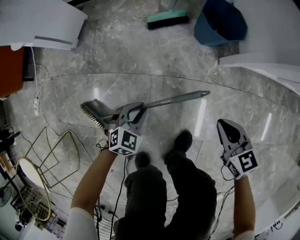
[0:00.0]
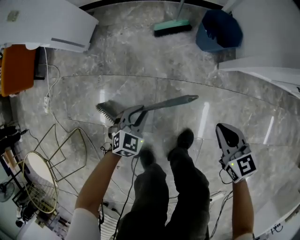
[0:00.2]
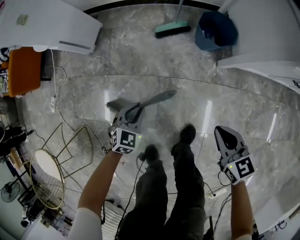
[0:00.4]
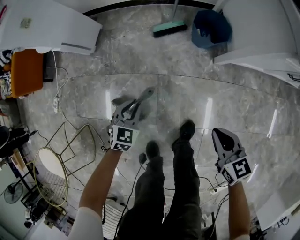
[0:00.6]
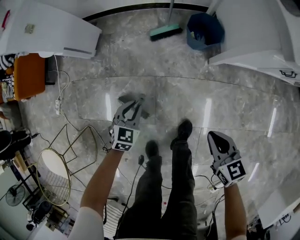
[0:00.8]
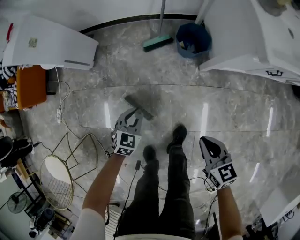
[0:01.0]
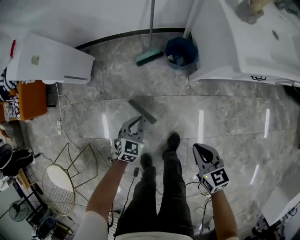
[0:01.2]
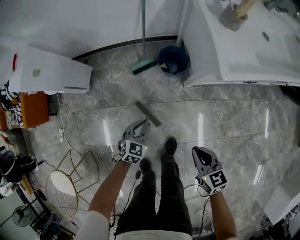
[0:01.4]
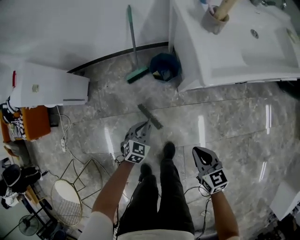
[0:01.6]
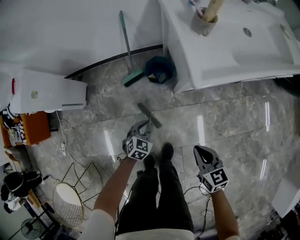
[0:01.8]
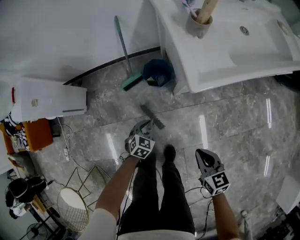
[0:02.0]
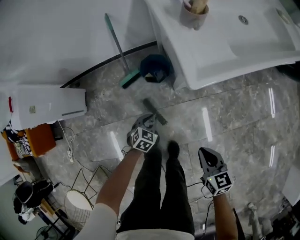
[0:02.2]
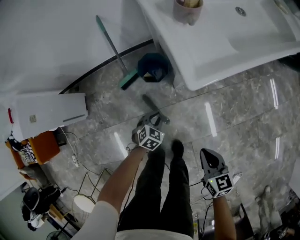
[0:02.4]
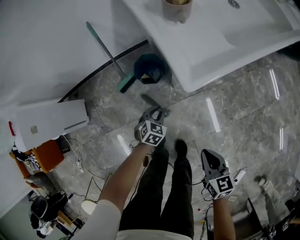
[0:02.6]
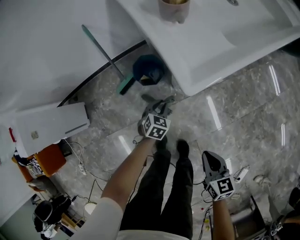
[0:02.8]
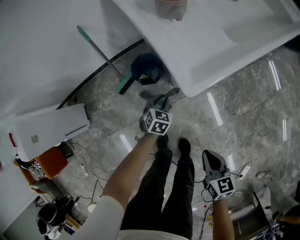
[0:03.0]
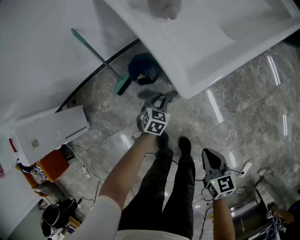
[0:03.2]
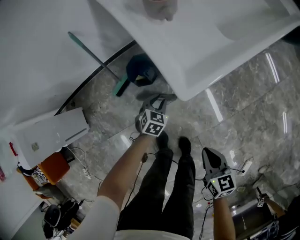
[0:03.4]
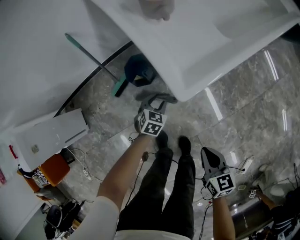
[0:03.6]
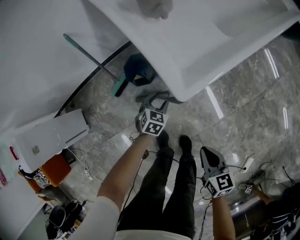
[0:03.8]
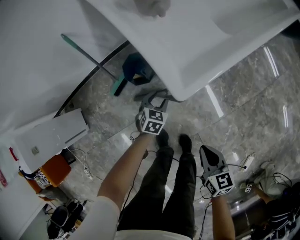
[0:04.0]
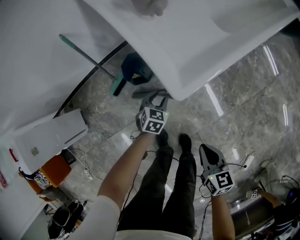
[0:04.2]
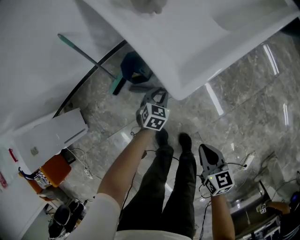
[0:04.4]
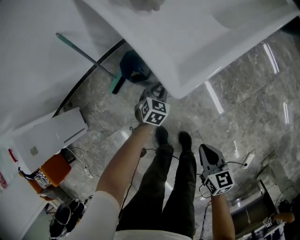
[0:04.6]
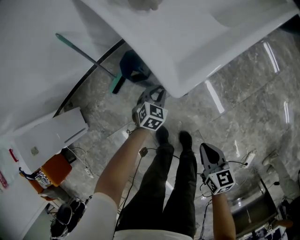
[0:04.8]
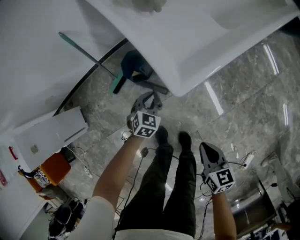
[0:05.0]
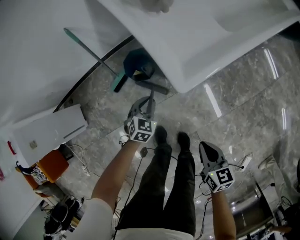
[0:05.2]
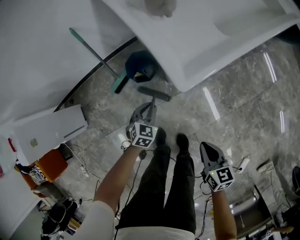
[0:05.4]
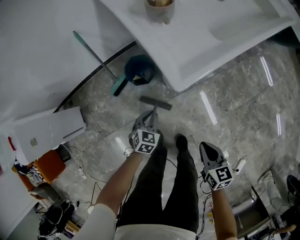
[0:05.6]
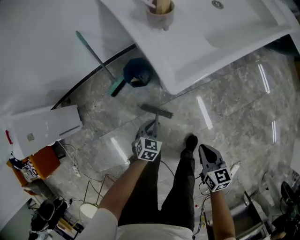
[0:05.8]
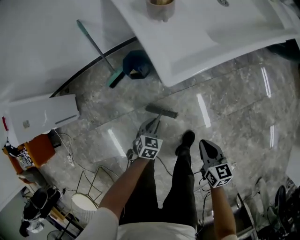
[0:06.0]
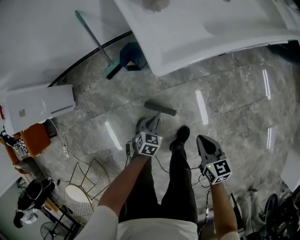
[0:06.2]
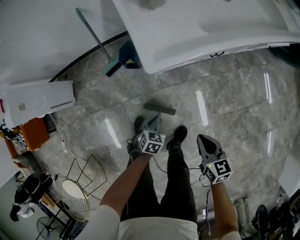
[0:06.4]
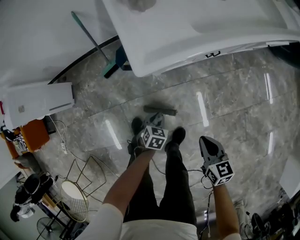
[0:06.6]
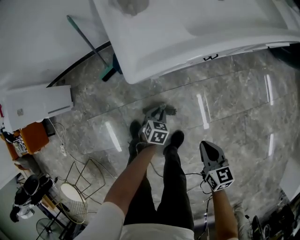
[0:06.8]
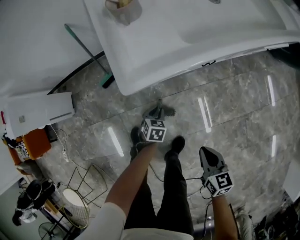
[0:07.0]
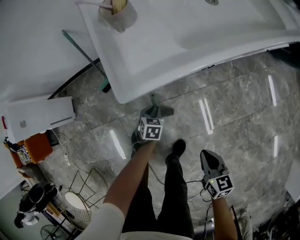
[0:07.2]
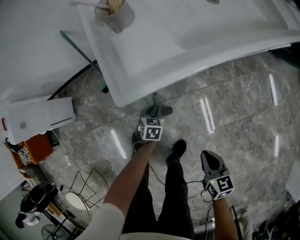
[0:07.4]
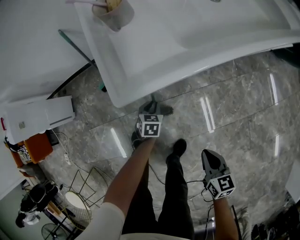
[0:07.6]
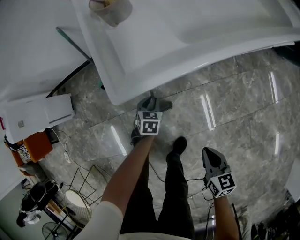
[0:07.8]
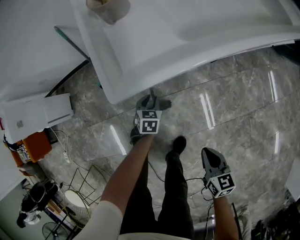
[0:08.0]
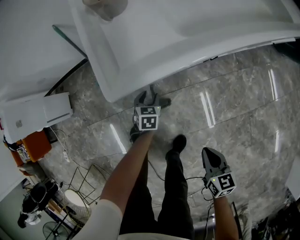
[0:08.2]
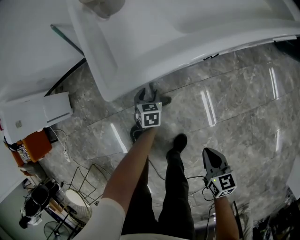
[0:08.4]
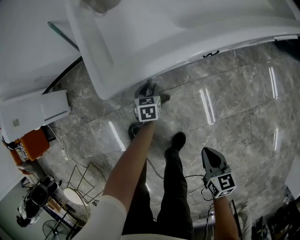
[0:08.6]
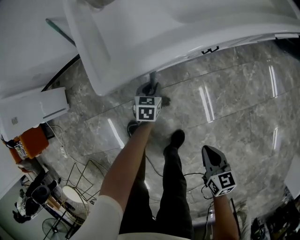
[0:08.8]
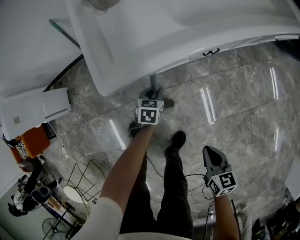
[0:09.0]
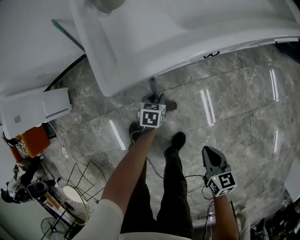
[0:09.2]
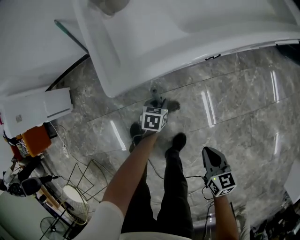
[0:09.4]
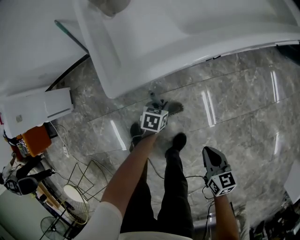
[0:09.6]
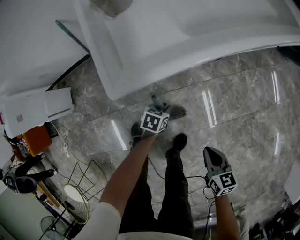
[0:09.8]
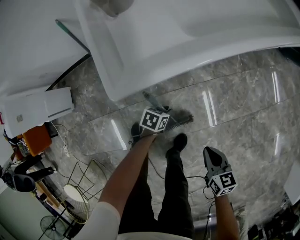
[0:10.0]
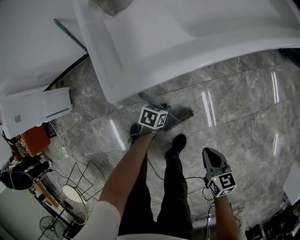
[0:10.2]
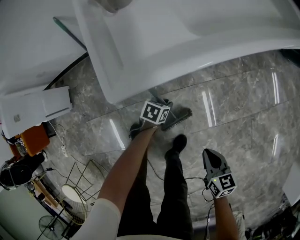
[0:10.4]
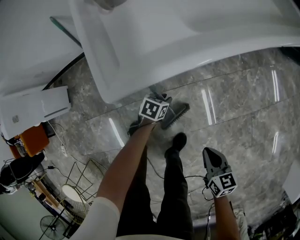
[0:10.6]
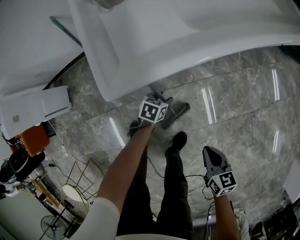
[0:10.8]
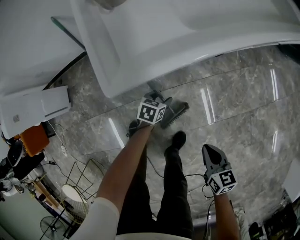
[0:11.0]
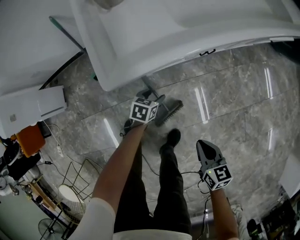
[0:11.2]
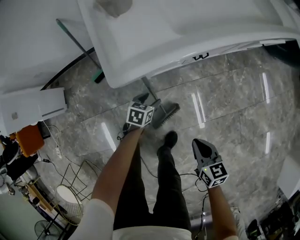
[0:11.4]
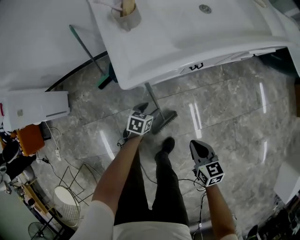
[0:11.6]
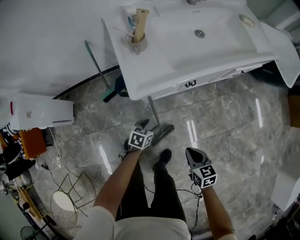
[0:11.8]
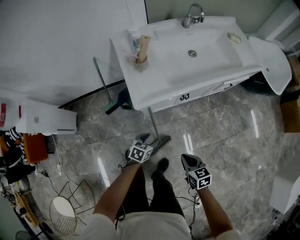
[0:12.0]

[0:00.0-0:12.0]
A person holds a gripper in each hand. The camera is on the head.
0:00.0 to 0:01.6: The right gripper heads upward, covering about 35 cm, while the left gripper goes some 35 cm upward and to the right.
0:01.6 to 0:03.0: The left gripper shifts about 25 cm forward, to the right and downward; the right gripper changes place by some 5 cm, and swivels approximately 30 degrees.
0:03.0 to 0:04.4: The left gripper opens and closes again.
0:04.4 to 0:06.0: The left gripper travels backward and upward by some 20 cm. The right gripper goes some 10 cm to the right.
0:06.0 to 0:07.6: The left gripper shifts about 20 cm forward, to the right and downward. Meanwhile the right gripper shifts approximately 15 cm to the right.
0:07.6 to 0:09.0: The right gripper changes place by approximately 5 cm; the left gripper opens and closes again.
0:09.0 to 0:10.4: The left gripper shifts by about 5 cm, and changes its angle by roughly 30 degrees.
0:10.4 to 0:12.0: The grippers both shift upward by some 30 cm. The left gripper opens up.

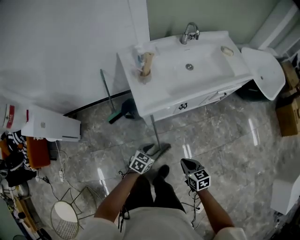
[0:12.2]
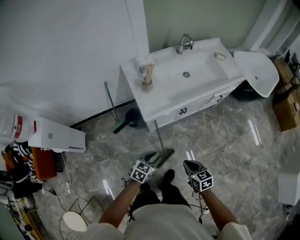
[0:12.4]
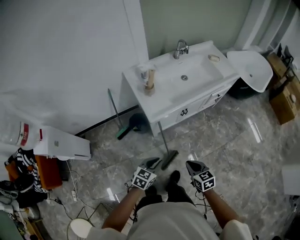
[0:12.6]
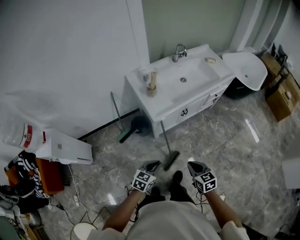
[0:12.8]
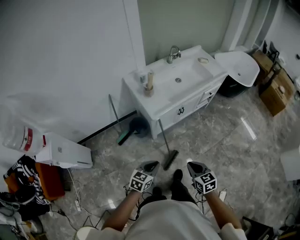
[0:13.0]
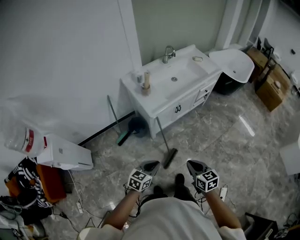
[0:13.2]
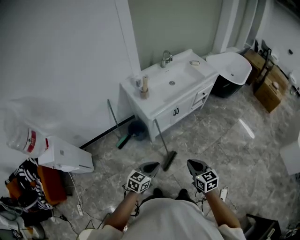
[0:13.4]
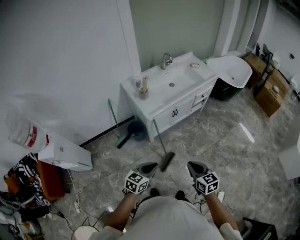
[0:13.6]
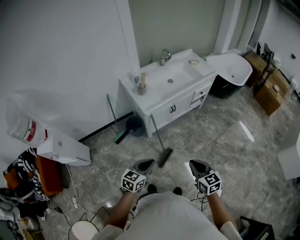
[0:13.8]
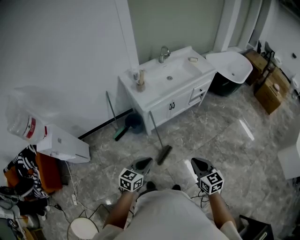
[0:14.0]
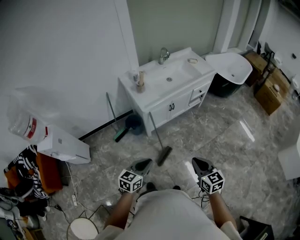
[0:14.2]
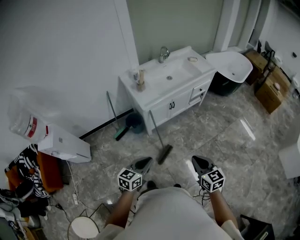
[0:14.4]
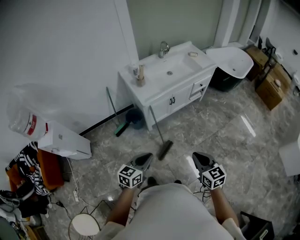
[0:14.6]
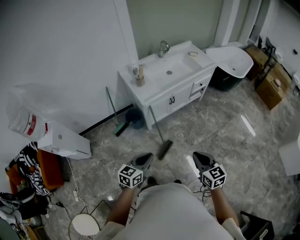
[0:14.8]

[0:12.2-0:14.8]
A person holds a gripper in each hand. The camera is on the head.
0:12.2 to 0:13.4: The left gripper goes some 35 cm backward and upward, swivels roughly 20 degrees, and closes; the right gripper heads upward and backward, covering about 30 cm, and rotates approximately 20 degrees.
0:13.4 to 0:14.8: The right gripper heads to the right, upward and backward, covering approximately 10 cm. The left gripper shifts by roughly 10 cm.

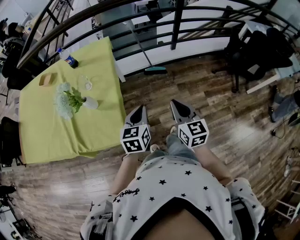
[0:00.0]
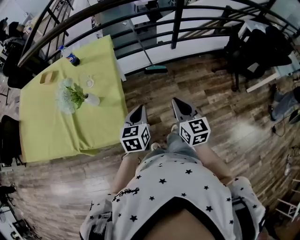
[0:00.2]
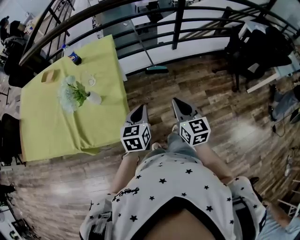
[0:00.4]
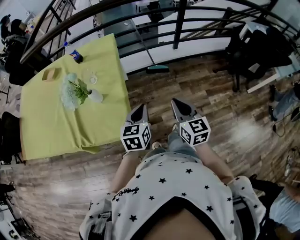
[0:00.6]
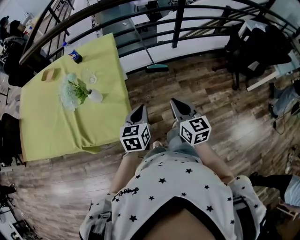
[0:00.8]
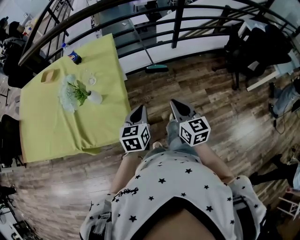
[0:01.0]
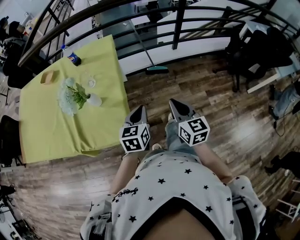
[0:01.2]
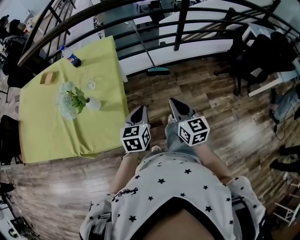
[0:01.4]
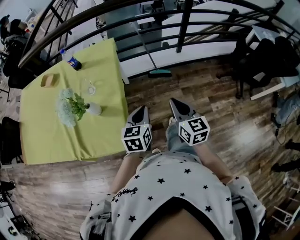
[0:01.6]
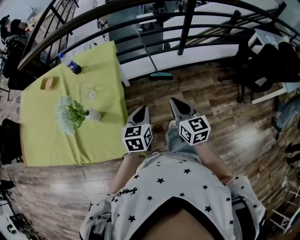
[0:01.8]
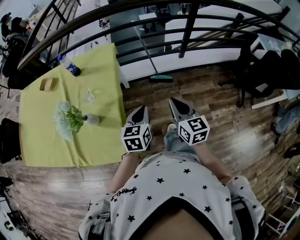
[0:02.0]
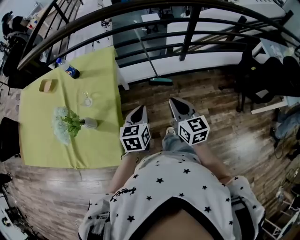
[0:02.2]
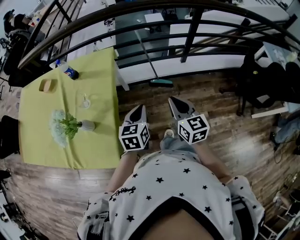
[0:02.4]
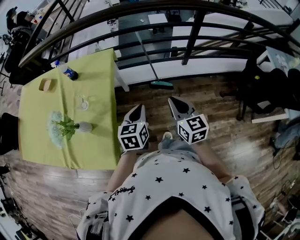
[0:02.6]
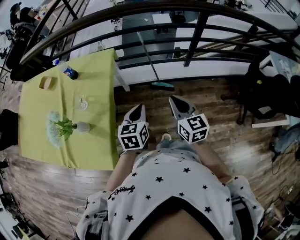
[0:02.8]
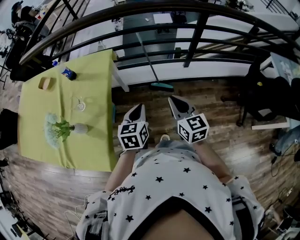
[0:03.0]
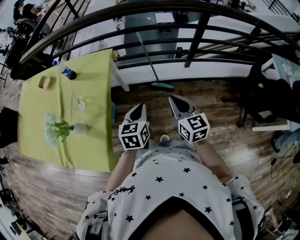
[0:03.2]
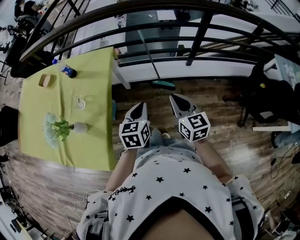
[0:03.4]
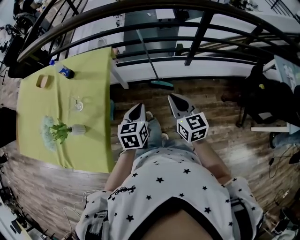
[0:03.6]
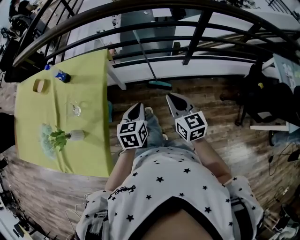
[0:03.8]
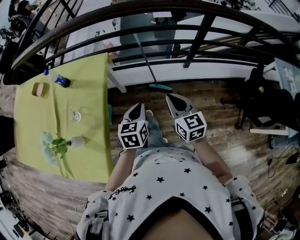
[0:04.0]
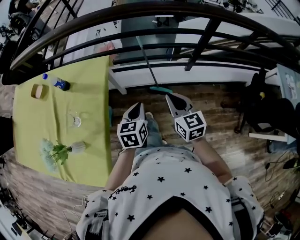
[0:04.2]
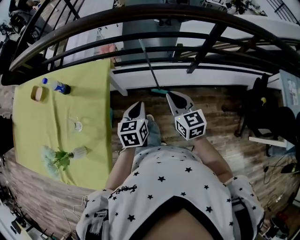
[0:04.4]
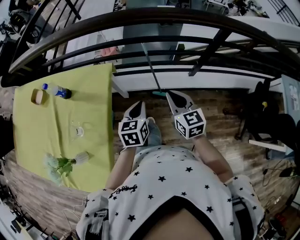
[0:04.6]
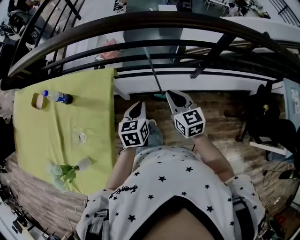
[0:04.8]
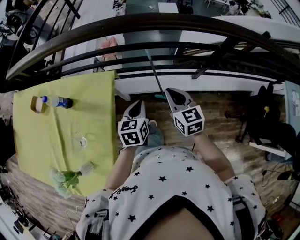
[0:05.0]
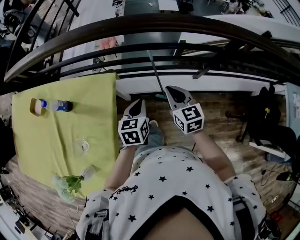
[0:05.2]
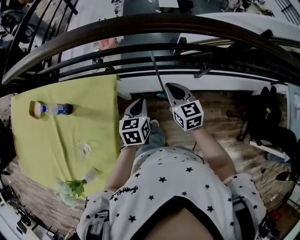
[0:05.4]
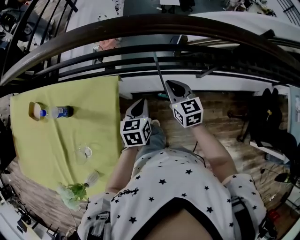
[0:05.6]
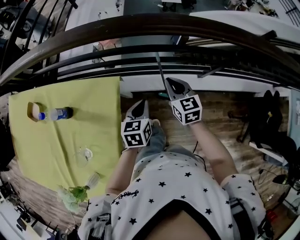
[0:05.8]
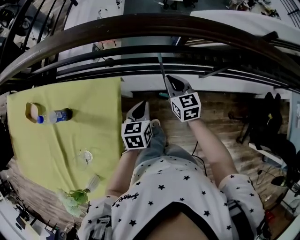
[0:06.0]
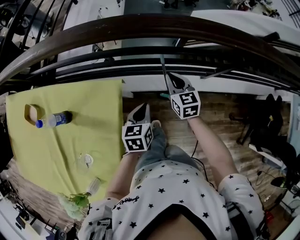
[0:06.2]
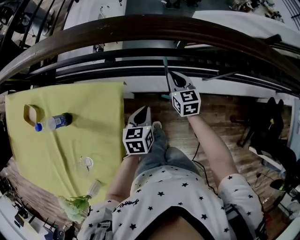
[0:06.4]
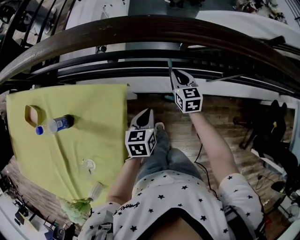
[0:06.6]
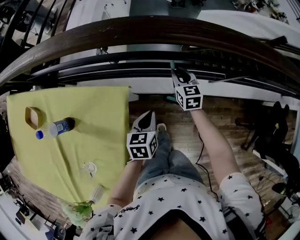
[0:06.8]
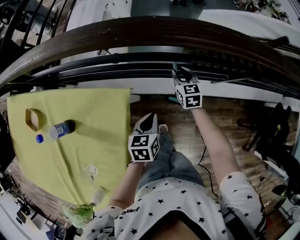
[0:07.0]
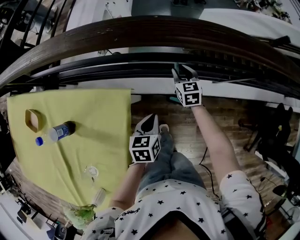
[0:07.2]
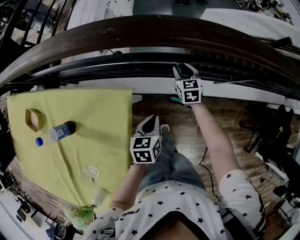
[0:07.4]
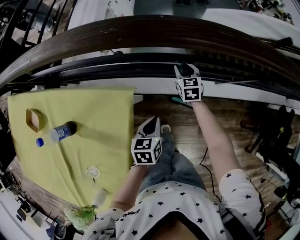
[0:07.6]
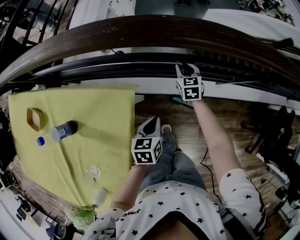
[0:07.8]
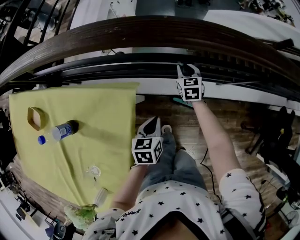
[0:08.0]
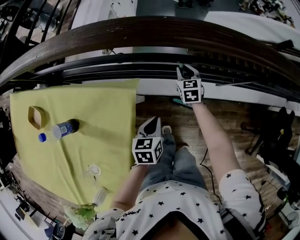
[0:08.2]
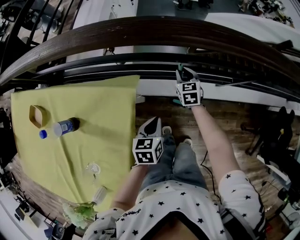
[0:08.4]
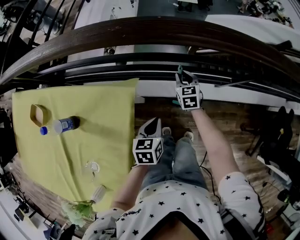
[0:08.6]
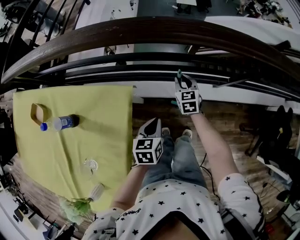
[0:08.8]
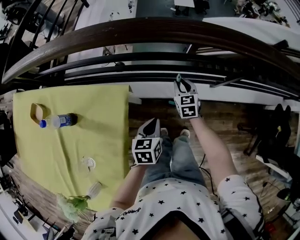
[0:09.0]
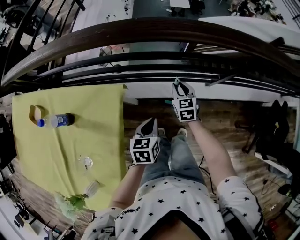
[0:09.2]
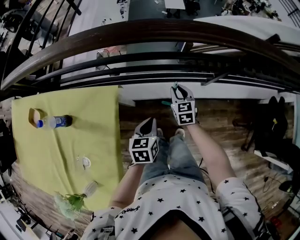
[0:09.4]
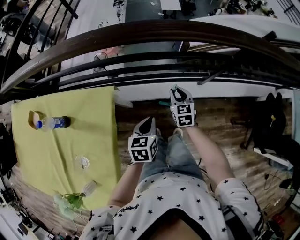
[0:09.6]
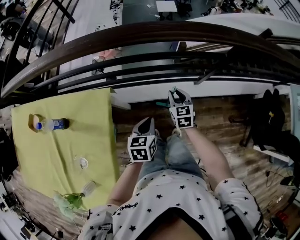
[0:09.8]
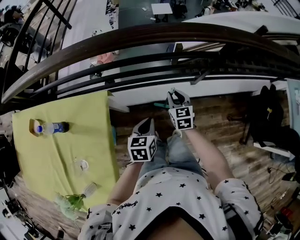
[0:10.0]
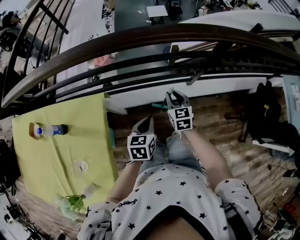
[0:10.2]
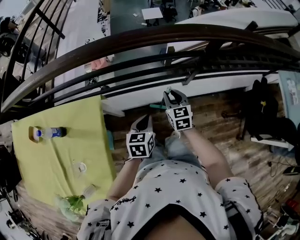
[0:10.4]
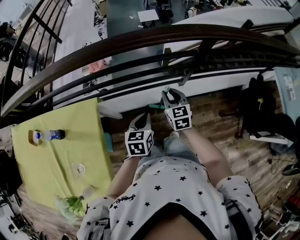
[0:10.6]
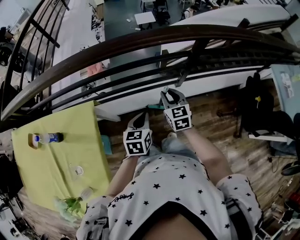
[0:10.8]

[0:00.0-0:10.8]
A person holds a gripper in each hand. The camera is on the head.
0:00.0 to 0:01.6: Both grippers move forward, roughly 5 cm.
0:01.6 to 0:03.0: Both grippers move forward and to the right, approximately 20 cm.
0:03.0 to 0:04.6: The two grippers go about 20 cm forward.
0:04.6 to 0:06.2: The left gripper moves forward and downward, some 20 cm. The right gripper shifts roughly 30 cm forward and downward.
0:06.2 to 0:07.8: The left gripper travels downward by some 5 cm, while the right gripper heads downward and forward, covering approximately 20 cm, and opens.
0:07.8 to 0:09.2: The right gripper moves backward, to the right and upward, some 15 cm. The left gripper travels to the right, backward and upward by about 10 cm.
0:09.2 to 0:10.8: The right gripper is displaced to the right, upward and backward by roughly 25 cm. Meanwhile the left gripper heads to the right and upward, covering about 15 cm.
